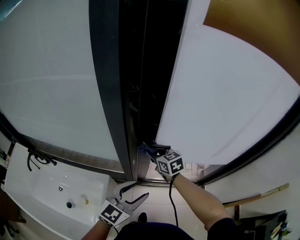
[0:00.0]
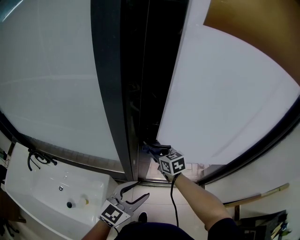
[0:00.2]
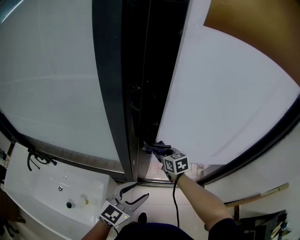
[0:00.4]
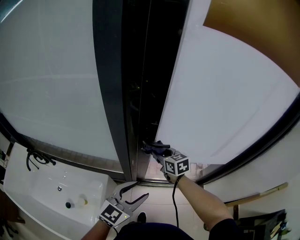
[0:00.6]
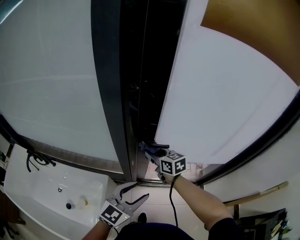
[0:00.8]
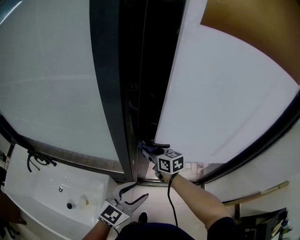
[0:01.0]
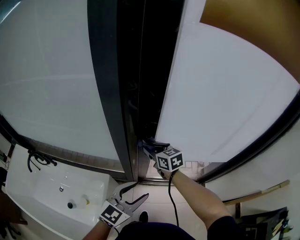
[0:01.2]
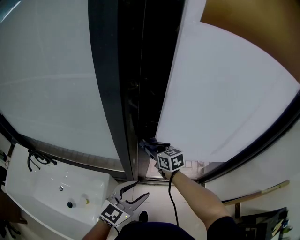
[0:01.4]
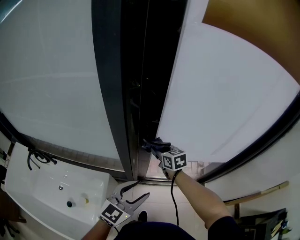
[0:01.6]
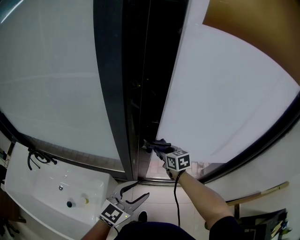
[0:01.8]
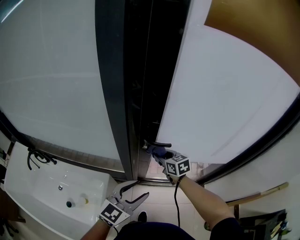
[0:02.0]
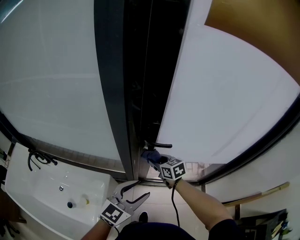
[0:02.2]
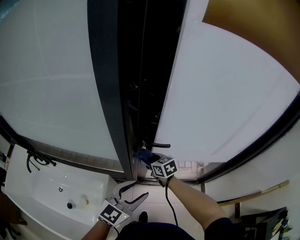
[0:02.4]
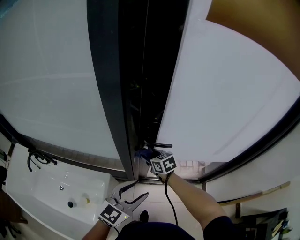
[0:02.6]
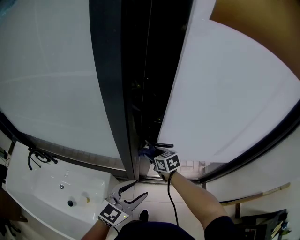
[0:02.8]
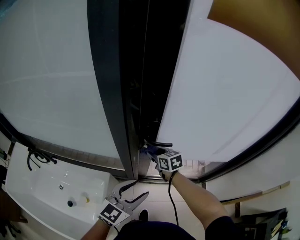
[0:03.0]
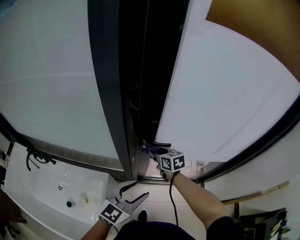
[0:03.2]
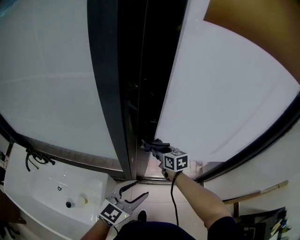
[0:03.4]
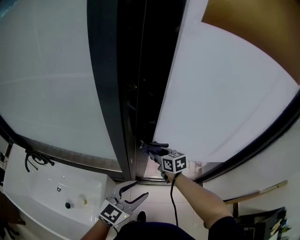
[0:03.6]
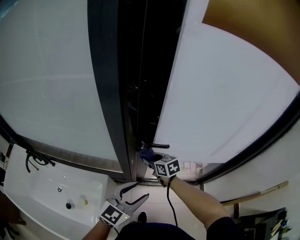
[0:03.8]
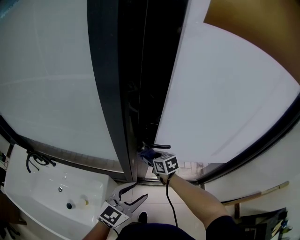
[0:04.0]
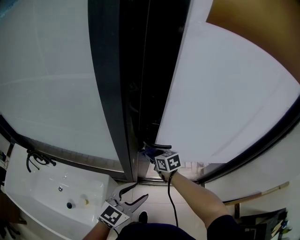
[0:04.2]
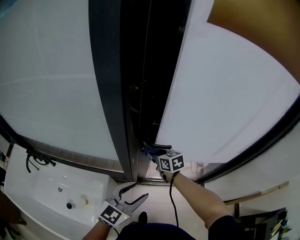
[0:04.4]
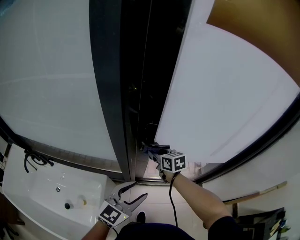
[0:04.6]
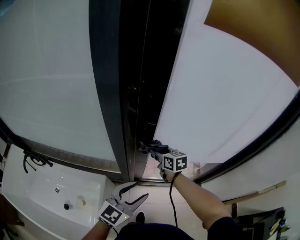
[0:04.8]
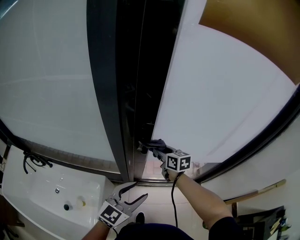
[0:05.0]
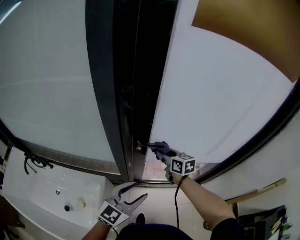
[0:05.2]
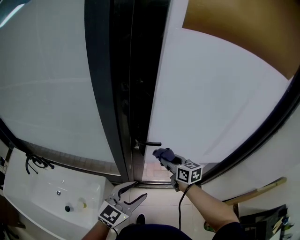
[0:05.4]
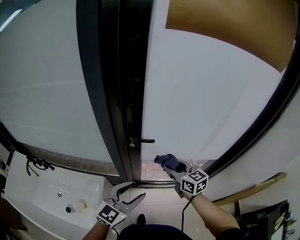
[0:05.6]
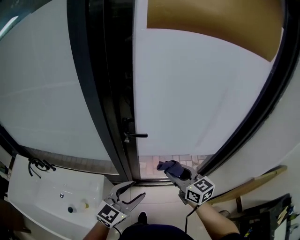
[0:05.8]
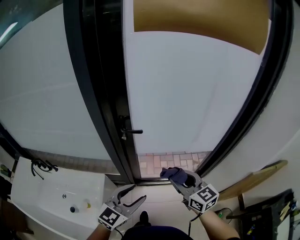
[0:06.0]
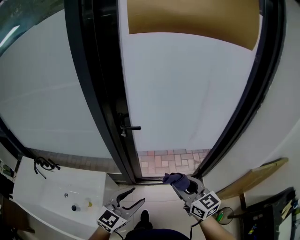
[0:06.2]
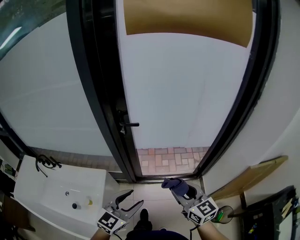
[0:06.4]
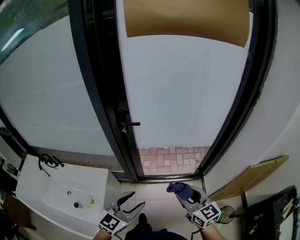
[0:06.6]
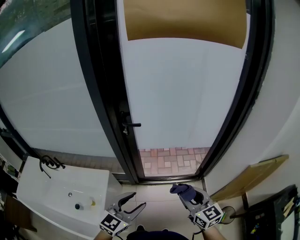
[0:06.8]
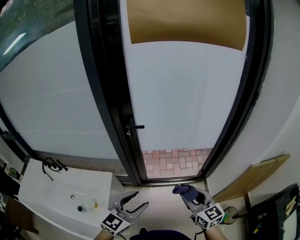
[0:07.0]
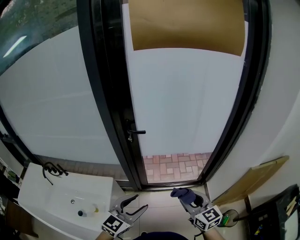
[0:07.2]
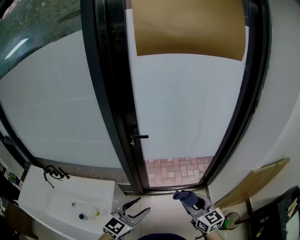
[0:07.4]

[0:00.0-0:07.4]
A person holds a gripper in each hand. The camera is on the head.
0:00.0 to 0:01.4: The grippers stay close to where they were, moving slightly.
0:01.4 to 0:03.0: The right gripper is displaced downward by some 5 cm, and goes to the right and returns, some 5 cm each way.
0:03.0 to 0:04.4: The grippers make only small movements.
0:04.4 to 0:06.0: The left gripper shifts roughly 15 cm backward and to the right. Meanwhile the right gripper moves backward, to the right and upward, approximately 35 cm, and turns by some 20 degrees.
0:06.0 to 0:07.4: The two grippers go some 15 cm backward.

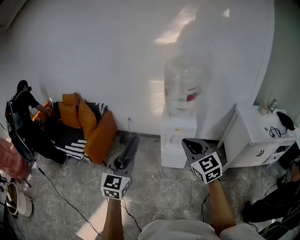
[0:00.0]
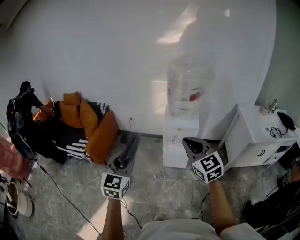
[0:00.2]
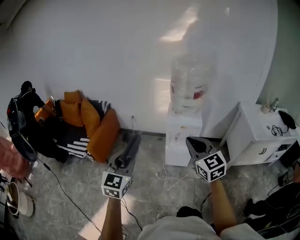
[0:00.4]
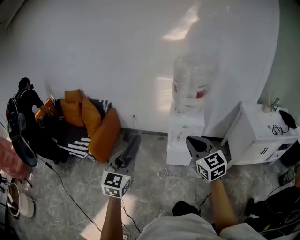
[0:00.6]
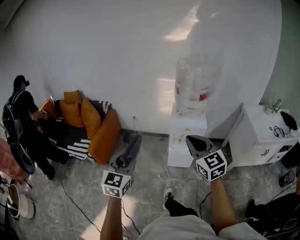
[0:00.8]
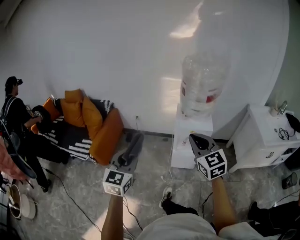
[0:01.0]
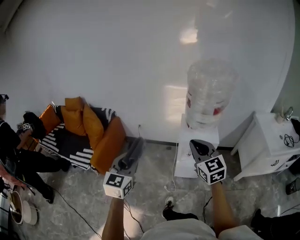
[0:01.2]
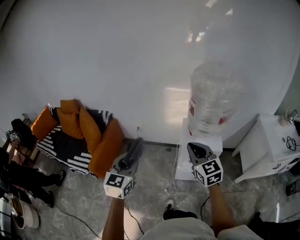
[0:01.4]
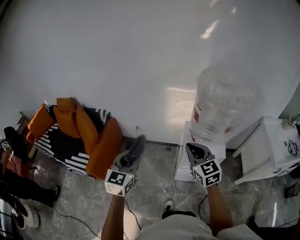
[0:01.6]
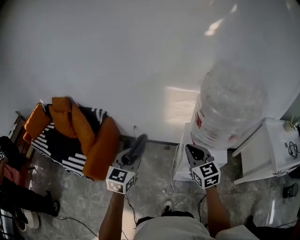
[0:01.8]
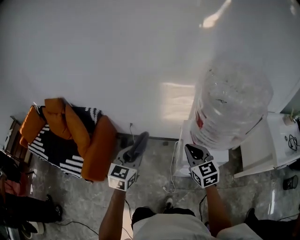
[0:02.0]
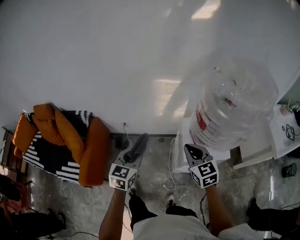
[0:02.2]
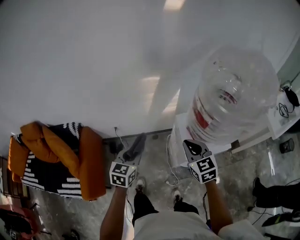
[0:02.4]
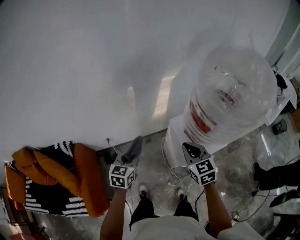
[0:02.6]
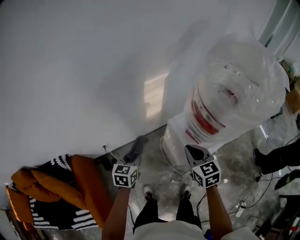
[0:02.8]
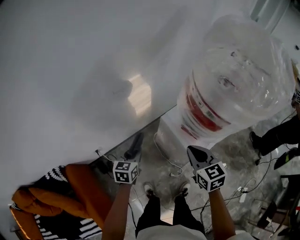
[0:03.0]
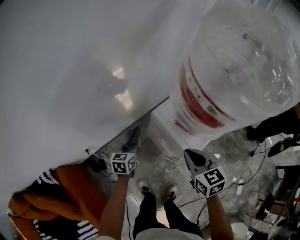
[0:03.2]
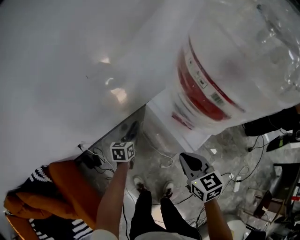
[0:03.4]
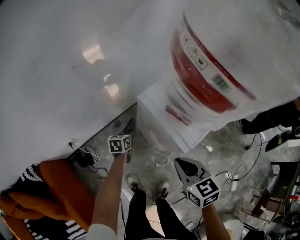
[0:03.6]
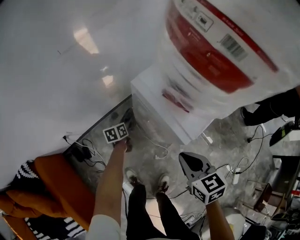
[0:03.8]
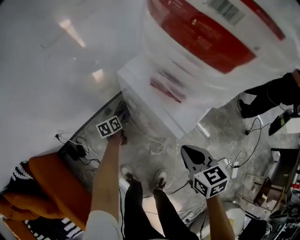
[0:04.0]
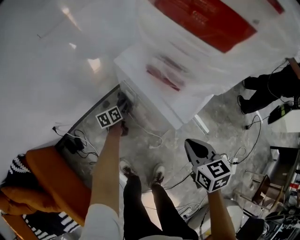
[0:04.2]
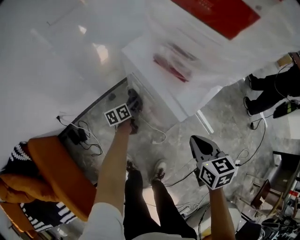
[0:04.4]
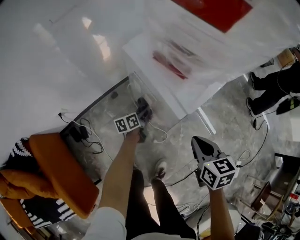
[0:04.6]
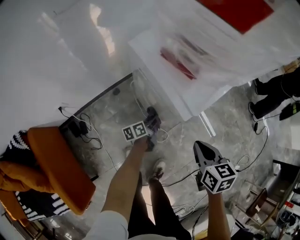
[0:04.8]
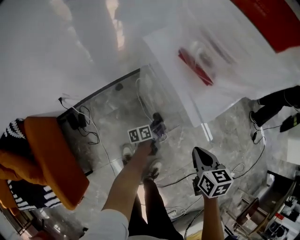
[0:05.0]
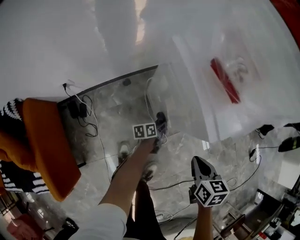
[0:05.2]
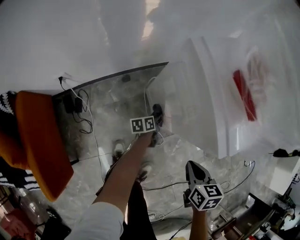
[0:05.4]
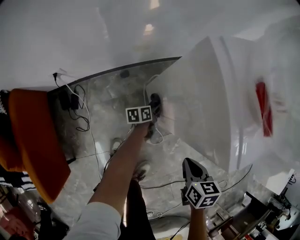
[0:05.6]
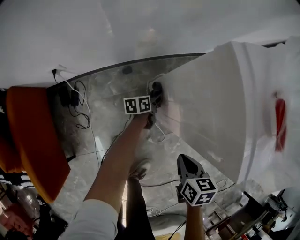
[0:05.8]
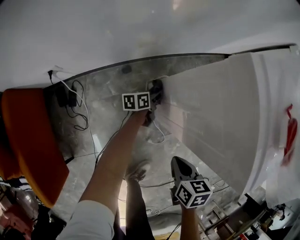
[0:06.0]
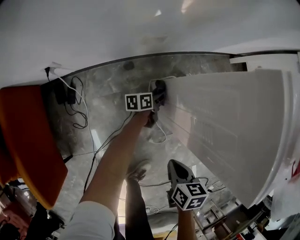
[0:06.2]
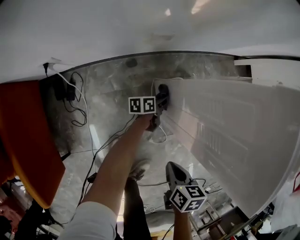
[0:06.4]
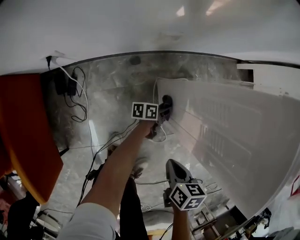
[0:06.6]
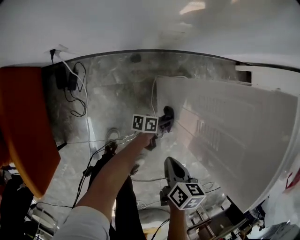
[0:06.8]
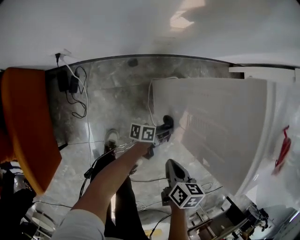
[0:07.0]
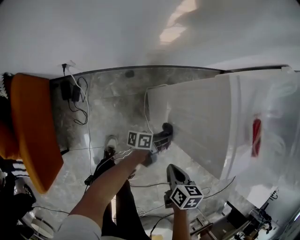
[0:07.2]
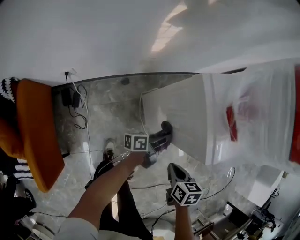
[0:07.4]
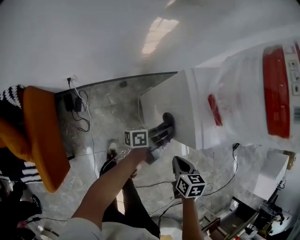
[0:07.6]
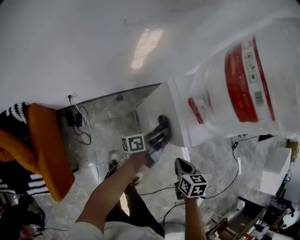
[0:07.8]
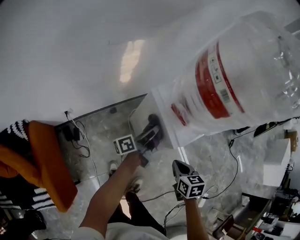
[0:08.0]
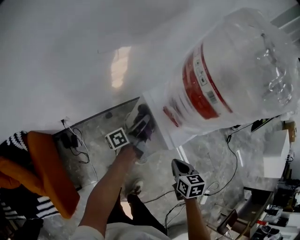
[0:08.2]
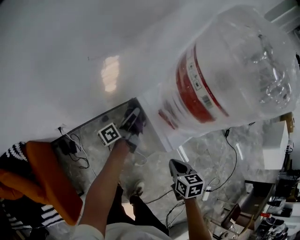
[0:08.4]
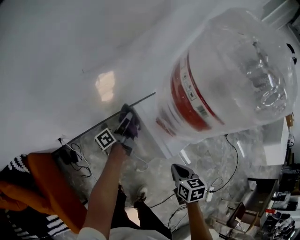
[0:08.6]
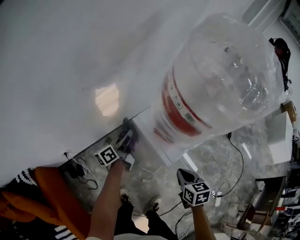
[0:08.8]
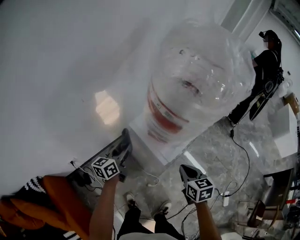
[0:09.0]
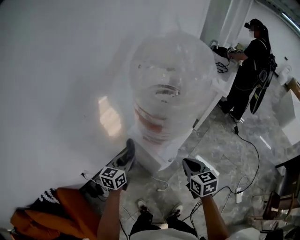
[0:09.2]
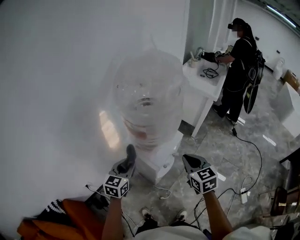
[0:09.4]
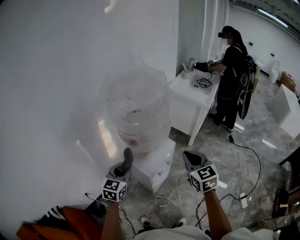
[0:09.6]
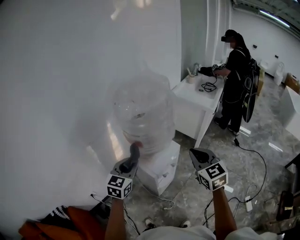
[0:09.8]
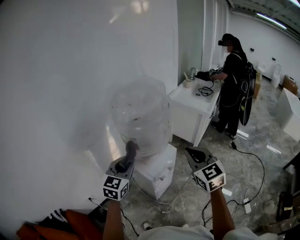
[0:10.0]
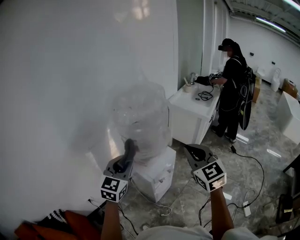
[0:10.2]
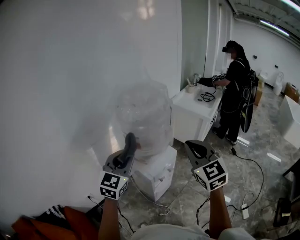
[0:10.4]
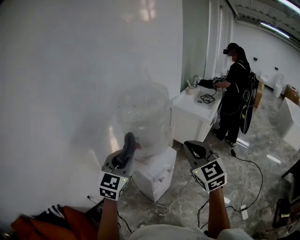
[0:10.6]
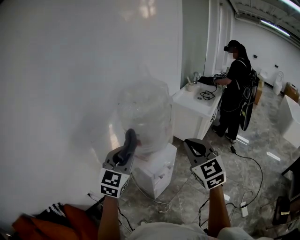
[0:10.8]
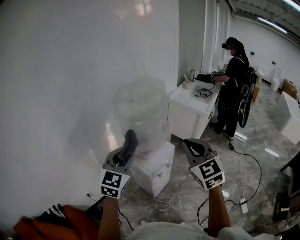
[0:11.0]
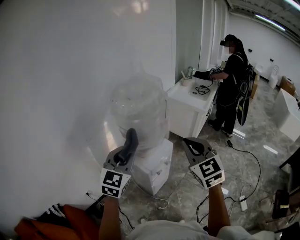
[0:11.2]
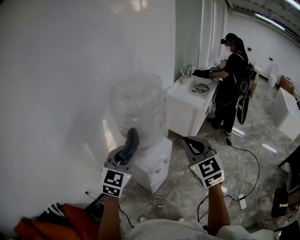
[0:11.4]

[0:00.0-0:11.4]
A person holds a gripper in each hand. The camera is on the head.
0:00.0 to 0:01.4: Both grippers travel together forward, some 25 cm.
0:01.4 to 0:02.8: The left gripper ends up some 50 cm from where it was, and rotates approximately 40 degrees; the right gripper ends up about 30 cm from where it was, and changes its angle by approximately 40 degrees.
0:02.8 to 0:04.2: The left gripper heads downward, covering about 35 cm, and rotates approximately 30 degrees, while the right gripper is displaced downward, to the right and backward by about 25 cm, and changes its angle by some 30 degrees.
0:04.2 to 0:05.6: Both grippers move downward, roughly 15 cm.
0:05.6 to 0:07.2: The right gripper moves approximately 10 cm downward and comes back. The left gripper goes roughly 15 cm upward, backward and to the right, and swivels roughly 30 degrees.
0:07.2 to 0:08.6: The left gripper shifts approximately 40 cm upward, forward and to the left, and rotates approximately 30 degrees, while the right gripper is displaced upward by approximately 25 cm.
0:08.6 to 0:10.0: The right gripper is displaced upward by roughly 35 cm, and angles its fingers upward, by some 40 degrees. The left gripper moves upward, backward and to the right, approximately 40 cm, and rotates around the line of its fingers by about 90 degrees, clockwise from behind.
0:10.0 to 0:11.4: Both grippers move upward, about 5 cm.

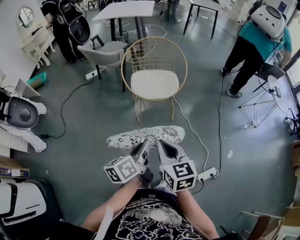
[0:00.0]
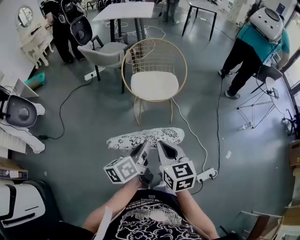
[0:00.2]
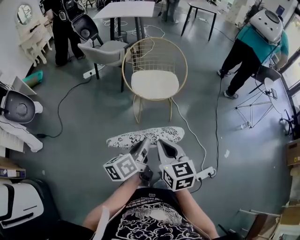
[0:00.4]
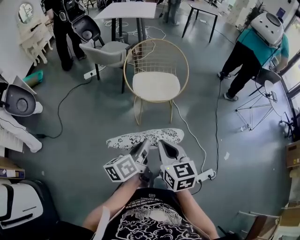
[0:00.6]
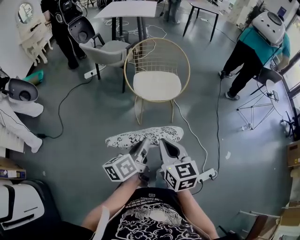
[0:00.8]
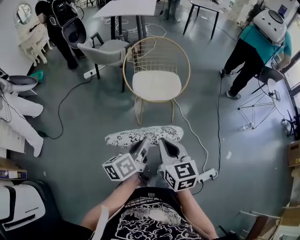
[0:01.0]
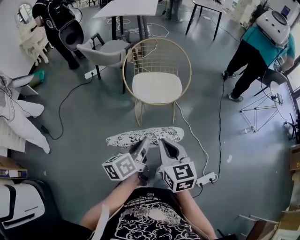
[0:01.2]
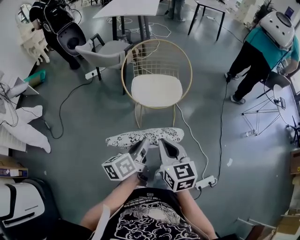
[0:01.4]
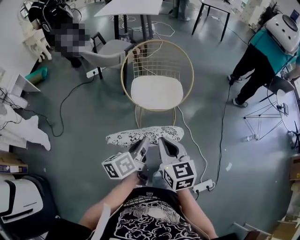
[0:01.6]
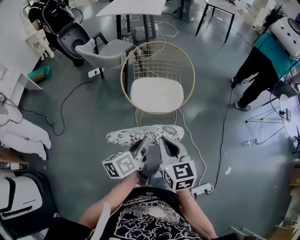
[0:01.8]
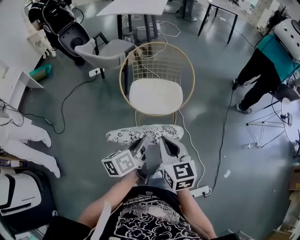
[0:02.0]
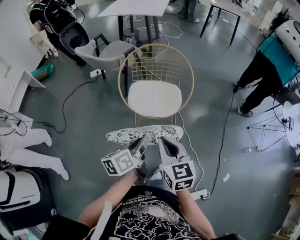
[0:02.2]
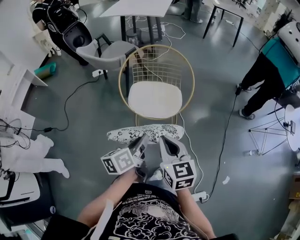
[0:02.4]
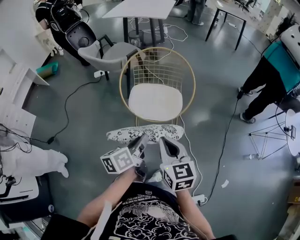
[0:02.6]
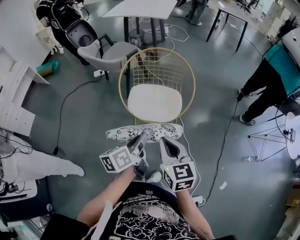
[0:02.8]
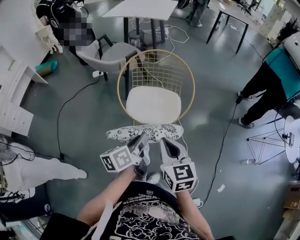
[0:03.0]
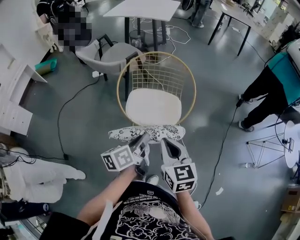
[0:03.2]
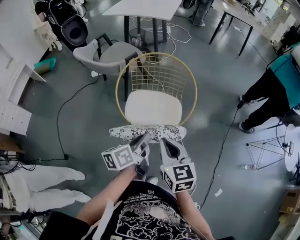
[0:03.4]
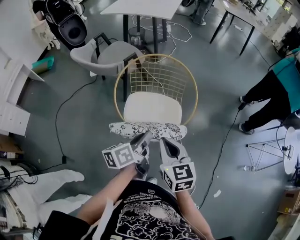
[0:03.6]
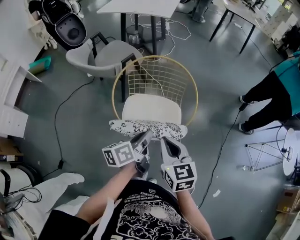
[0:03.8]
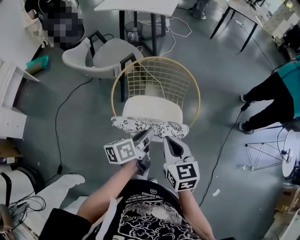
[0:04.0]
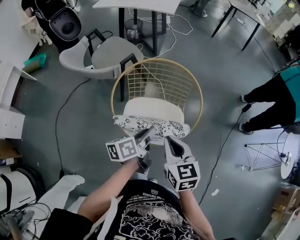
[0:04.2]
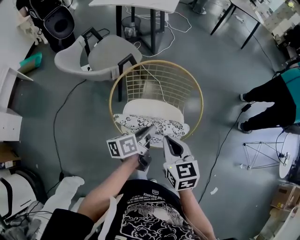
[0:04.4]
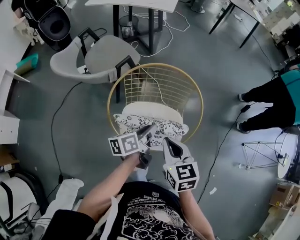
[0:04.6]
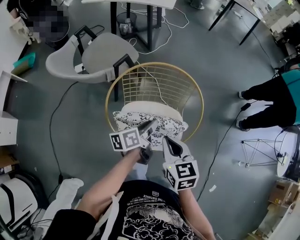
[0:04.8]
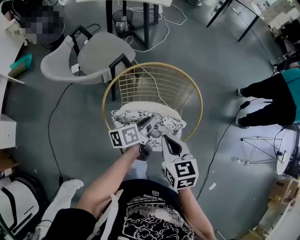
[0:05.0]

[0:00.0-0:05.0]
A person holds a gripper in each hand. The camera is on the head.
0:00.0 to 0:01.6: Both grippers travel together forward, roughly 10 cm.
0:01.6 to 0:03.4: Both grippers move forward and to the right, roughly 20 cm.
0:03.4 to 0:05.0: The left gripper is displaced forward and downward by approximately 25 cm. Meanwhile the right gripper shifts about 20 cm forward.
